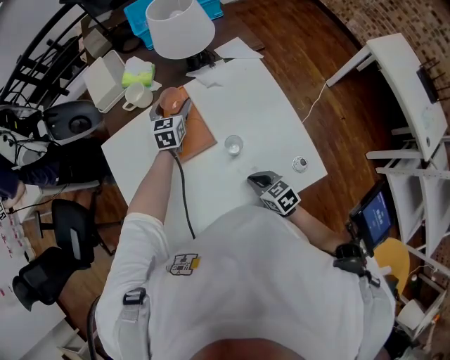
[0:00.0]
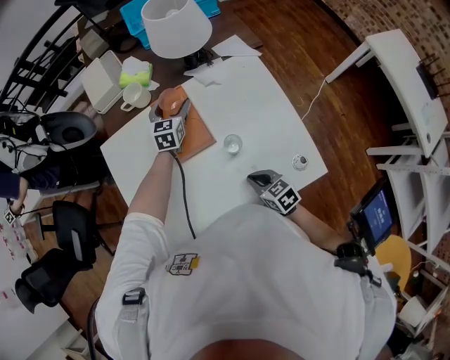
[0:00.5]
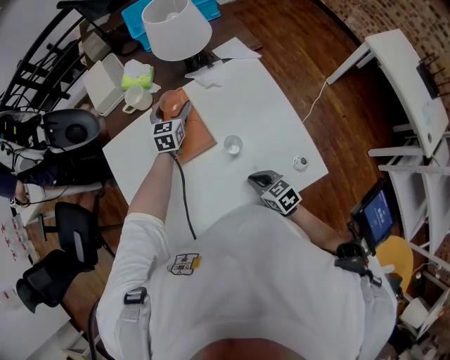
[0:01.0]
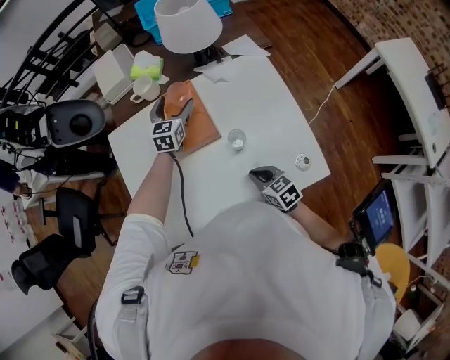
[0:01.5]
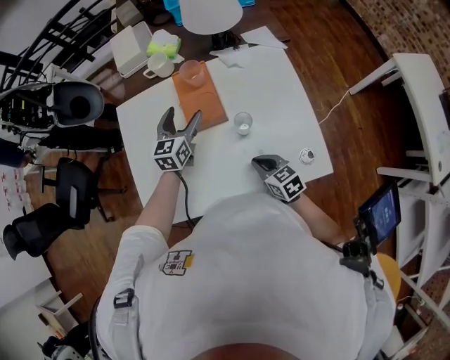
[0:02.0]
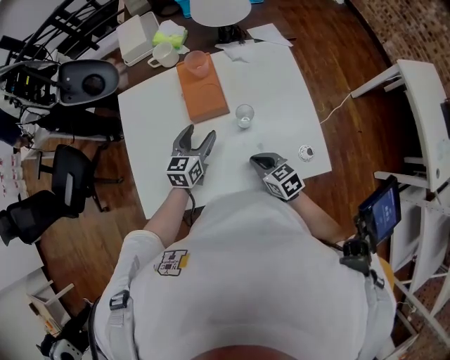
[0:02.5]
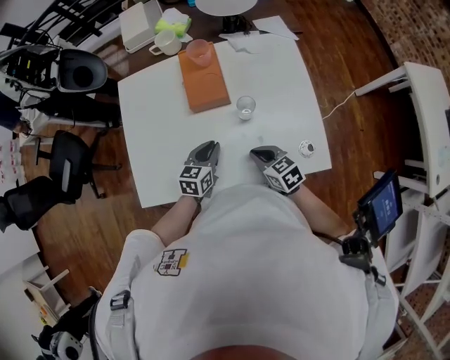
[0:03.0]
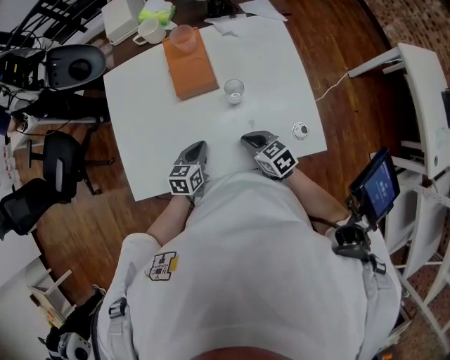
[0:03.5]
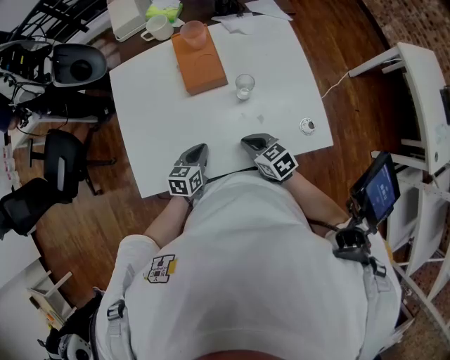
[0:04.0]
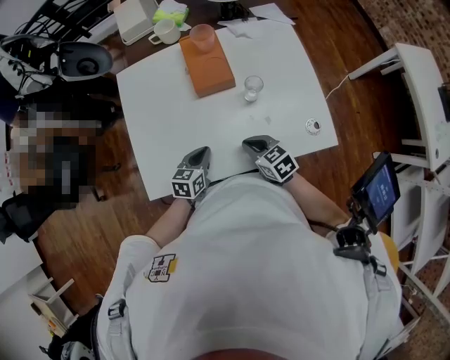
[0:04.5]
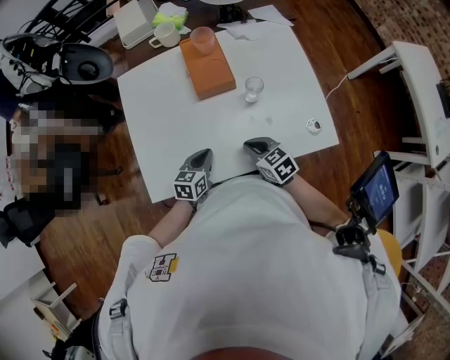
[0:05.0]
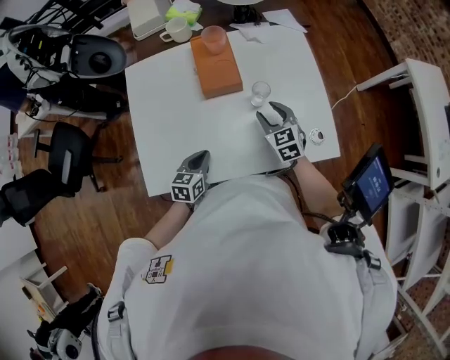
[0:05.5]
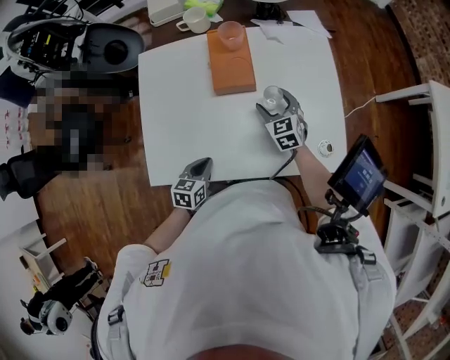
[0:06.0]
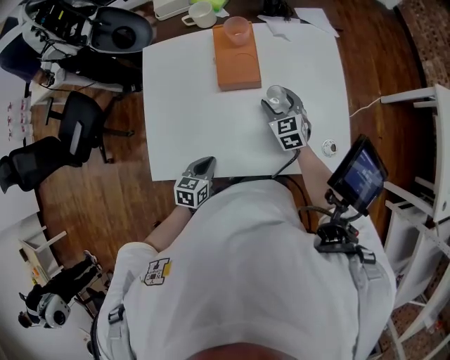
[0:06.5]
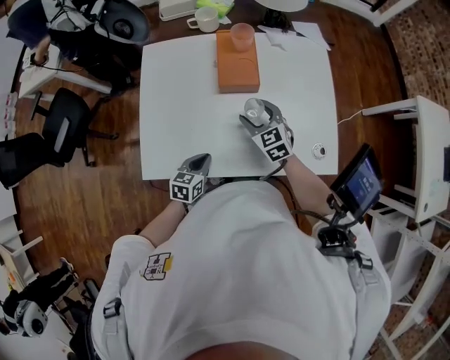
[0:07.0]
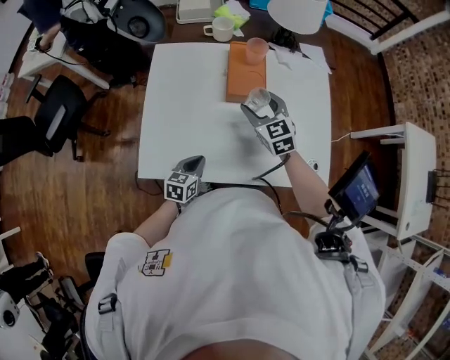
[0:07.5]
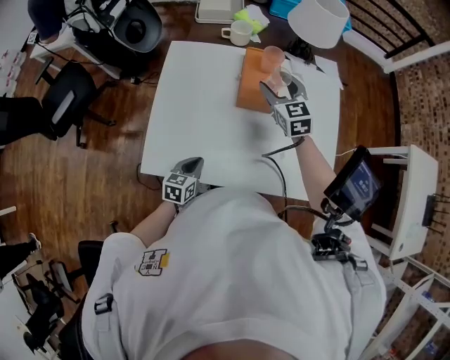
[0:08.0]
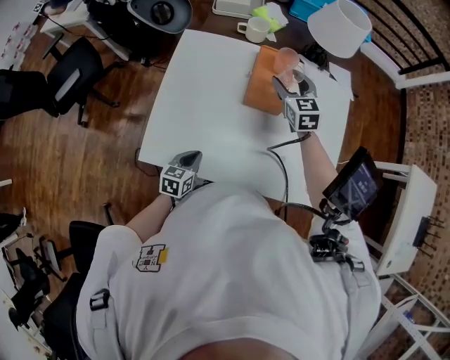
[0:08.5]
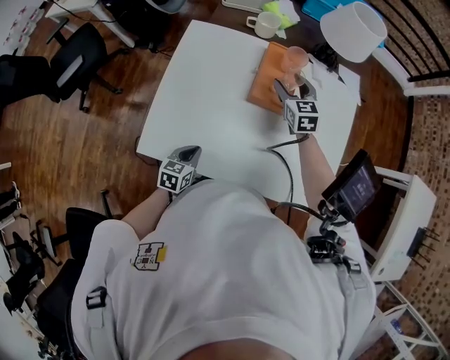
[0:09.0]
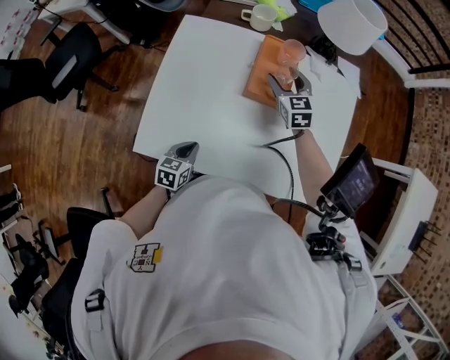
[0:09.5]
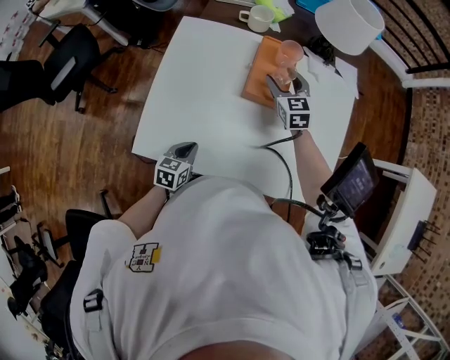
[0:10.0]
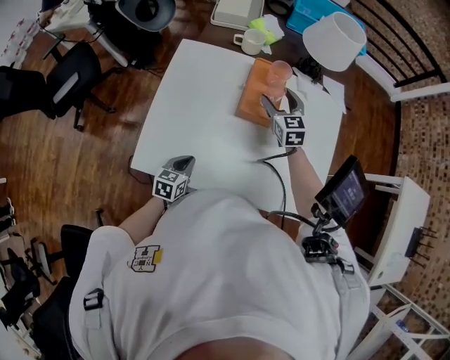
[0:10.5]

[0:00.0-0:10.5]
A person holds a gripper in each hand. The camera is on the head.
0:00.0 to 0:02.0: The left gripper is displaced backward and to the left by some 15 cm.
0:02.0 to 0:04.0: The right gripper travels to the left by approximately 5 cm. The left gripper moves backward and downward, some 25 cm, rotates about 30 degrees, and closes up.
0:04.0 to 0:06.5: The right gripper moves forward, some 20 cm, changes its angle by roughly 30 degrees, and opens up; the left gripper moves backward, approximately 5 cm.
0:06.5 to 0:08.5: The left gripper moves to the left, some 5 cm. Meanwhile the right gripper goes some 20 cm upward, forward and to the left.

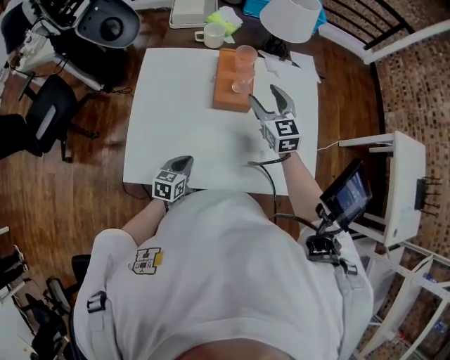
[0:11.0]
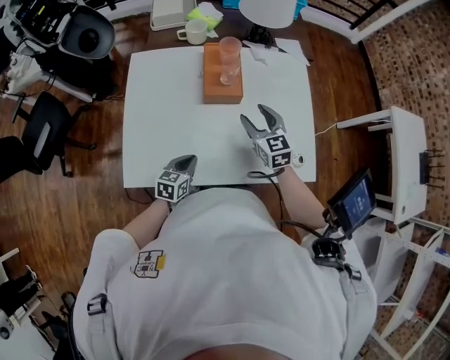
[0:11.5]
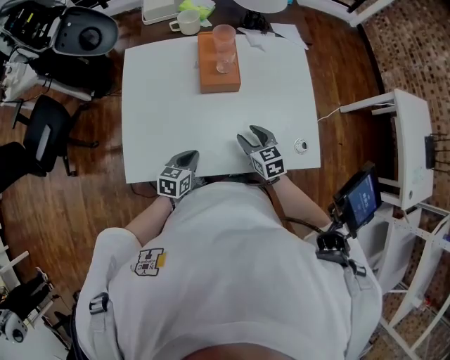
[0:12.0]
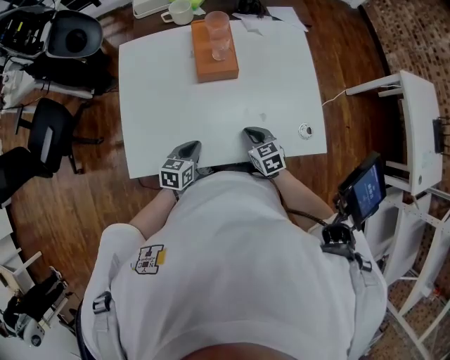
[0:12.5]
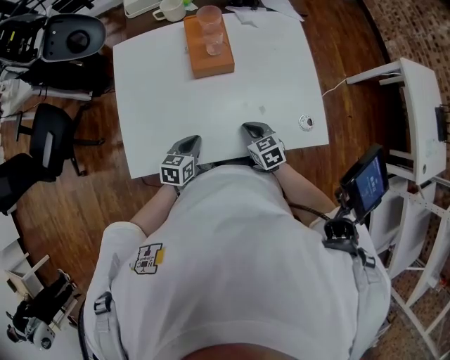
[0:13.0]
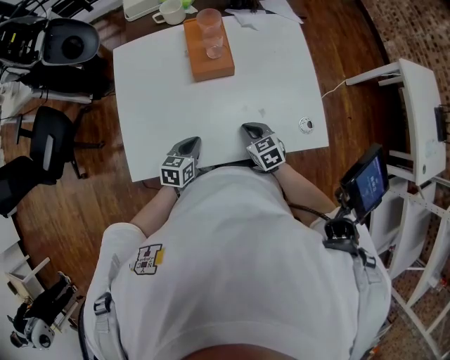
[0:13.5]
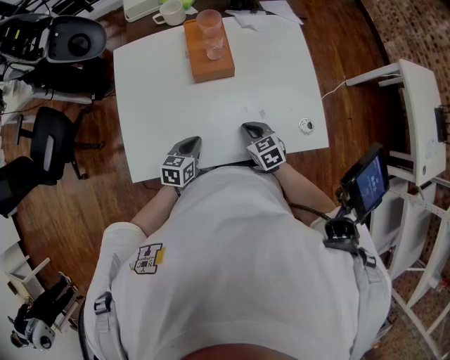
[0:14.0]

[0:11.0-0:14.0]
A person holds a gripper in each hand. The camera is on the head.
0:11.0 to 0:12.5: The right gripper shifts approximately 30 cm backward and downward, turns by some 30 degrees, and closes up.
0:12.5 to 0:14.0: Neither gripper changes place.

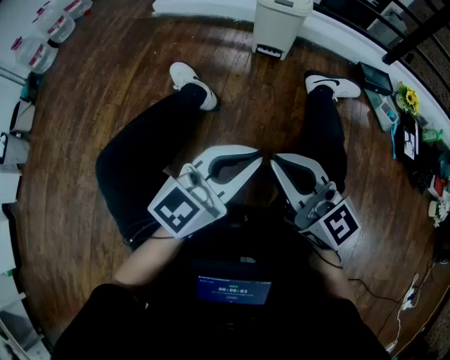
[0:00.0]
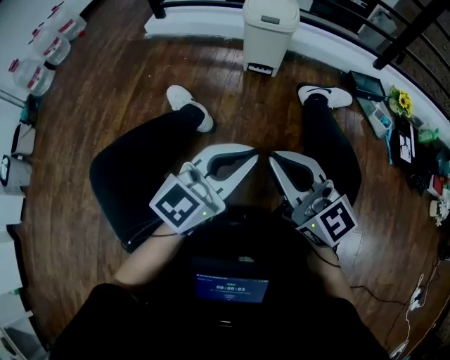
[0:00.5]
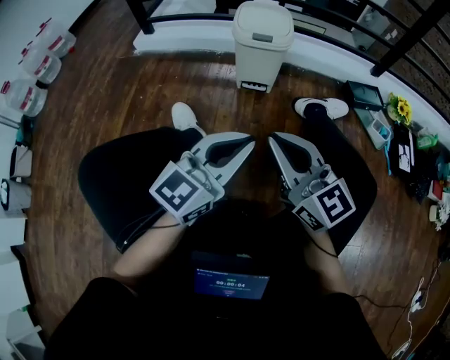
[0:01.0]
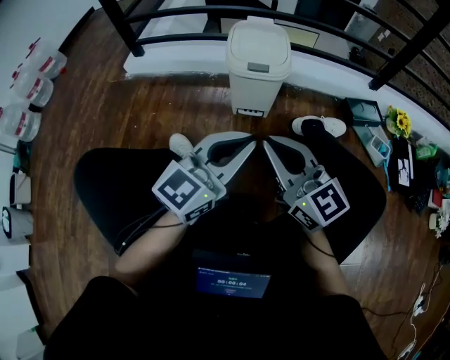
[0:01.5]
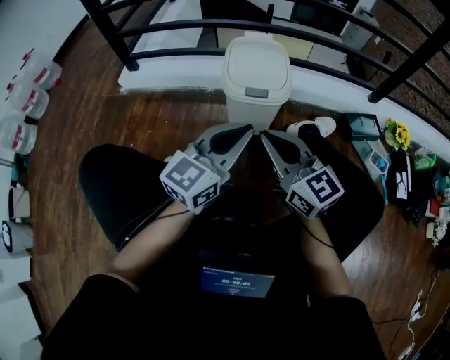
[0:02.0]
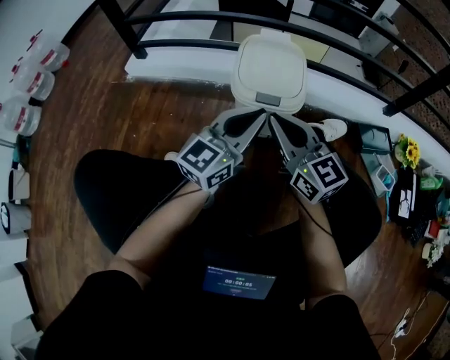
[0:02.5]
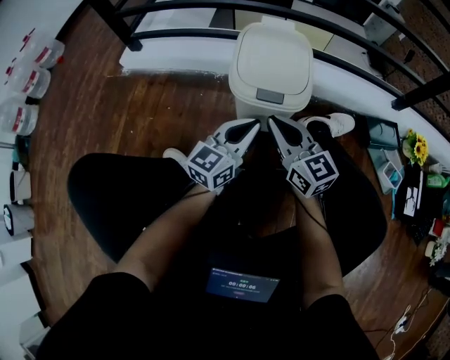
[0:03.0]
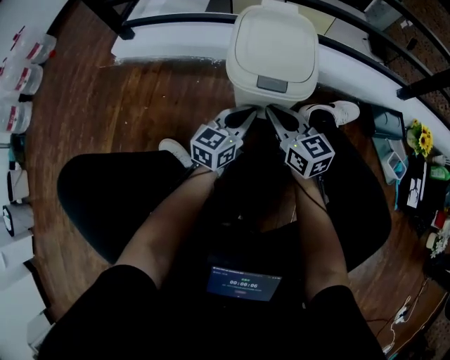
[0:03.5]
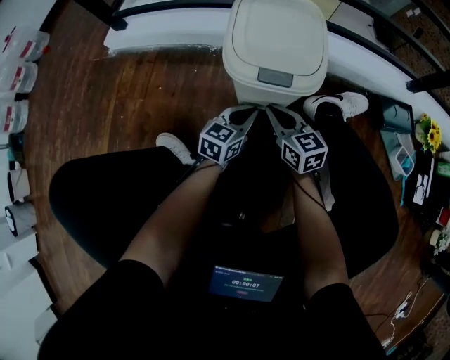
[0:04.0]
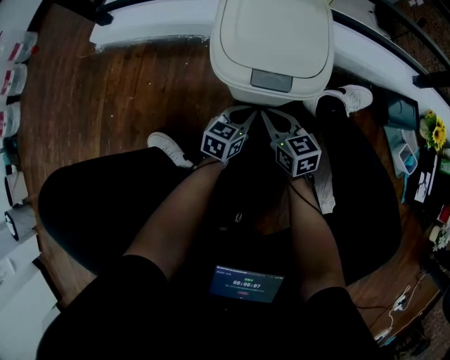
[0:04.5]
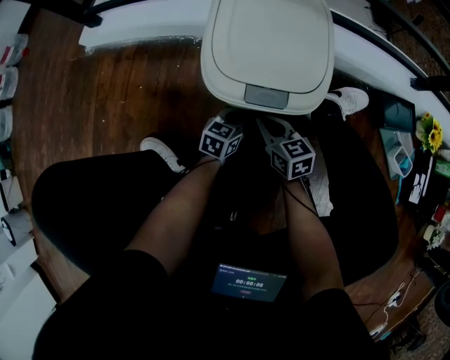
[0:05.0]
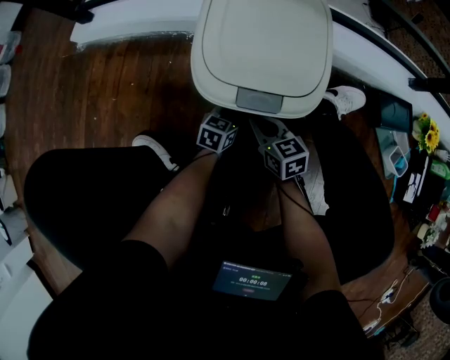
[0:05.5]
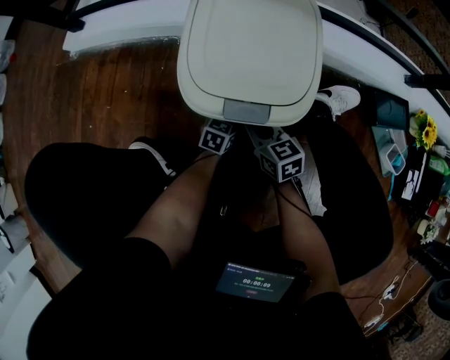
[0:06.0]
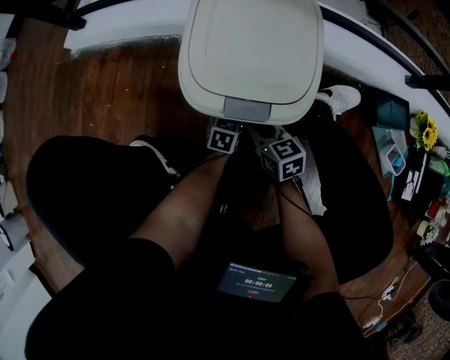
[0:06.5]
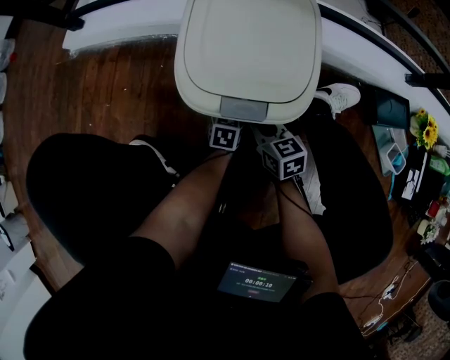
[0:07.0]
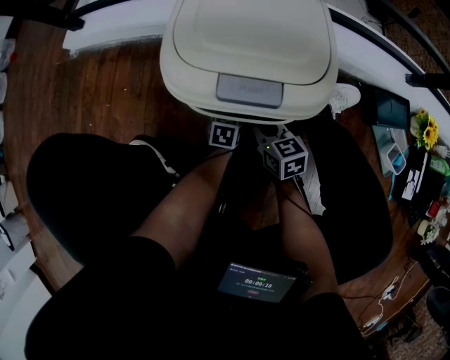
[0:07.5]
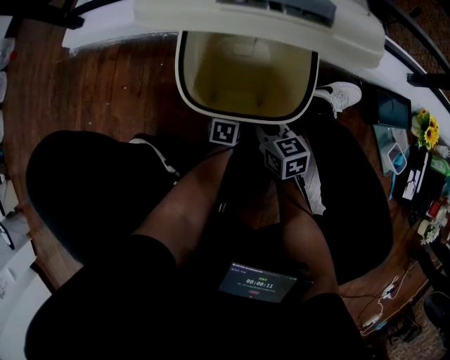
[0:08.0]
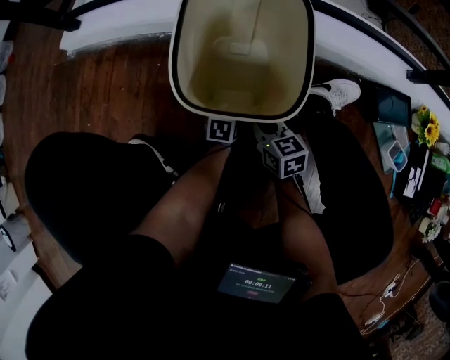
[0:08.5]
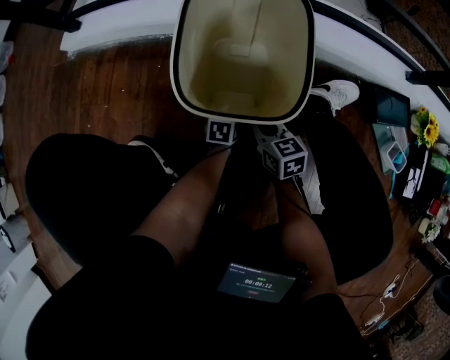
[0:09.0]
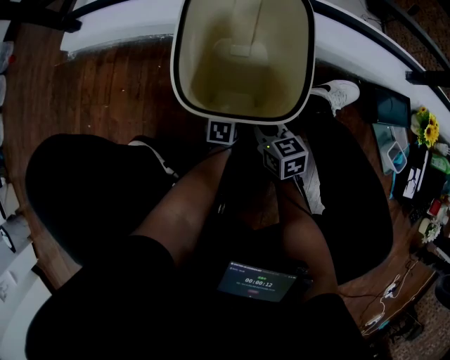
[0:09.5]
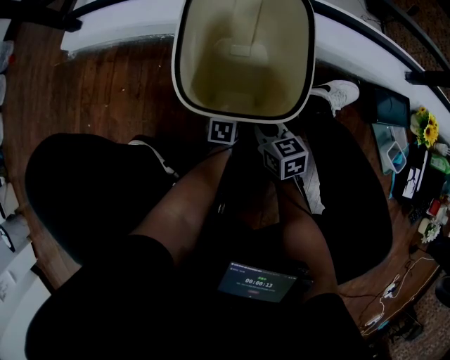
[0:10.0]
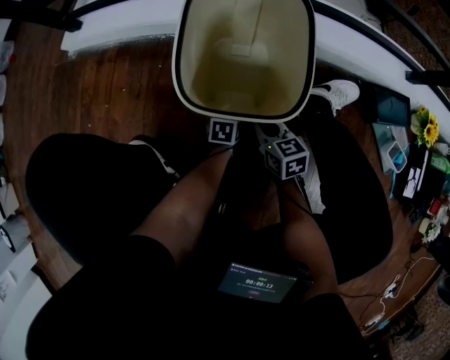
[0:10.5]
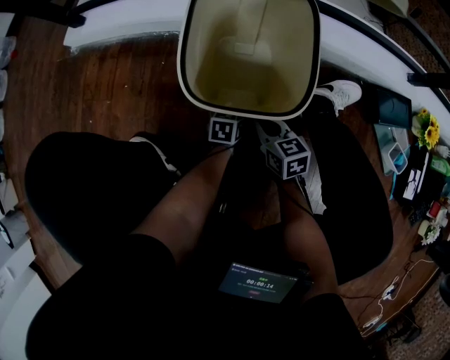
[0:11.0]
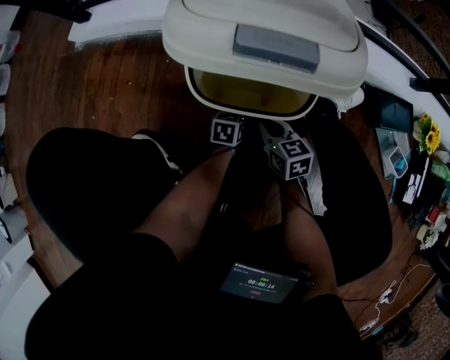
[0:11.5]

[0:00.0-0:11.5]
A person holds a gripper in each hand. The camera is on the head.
0:00.0 to 0:02.0: The two grippers travel together, forward, about 50 cm.
0:02.0 to 0:04.0: The grippers both shift downward and forward by approximately 35 cm. The right gripper swivels roughly 20 degrees; the left gripper rotates roughly 30 degrees.
0:04.0 to 0:06.0: The left gripper shifts roughly 20 cm downward and forward, while the right gripper shifts some 10 cm downward.
0:06.0 to 0:09.5: There are only small adjustments of the grippers.
0:09.5 to 0:11.5: Both grippers stay put.

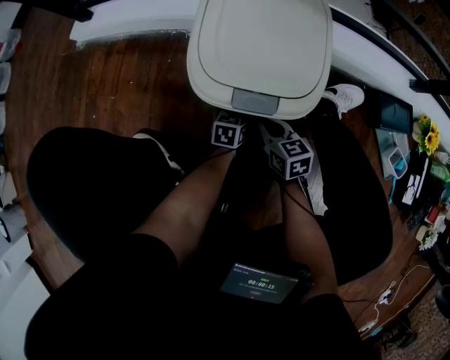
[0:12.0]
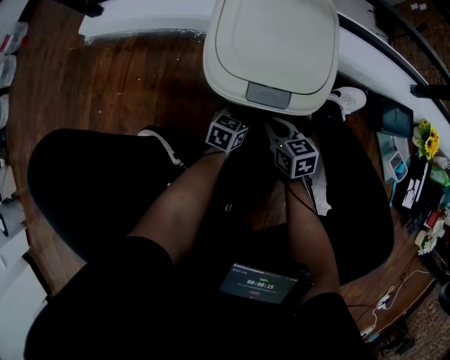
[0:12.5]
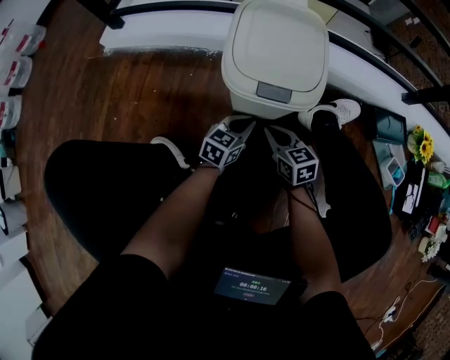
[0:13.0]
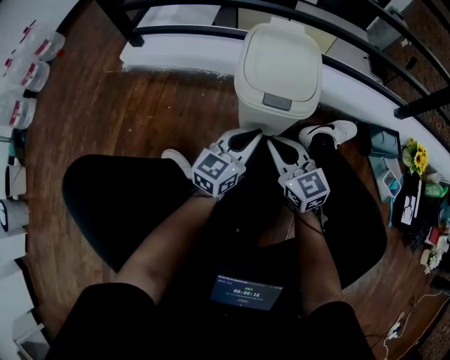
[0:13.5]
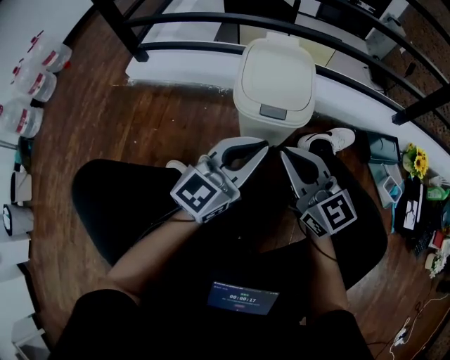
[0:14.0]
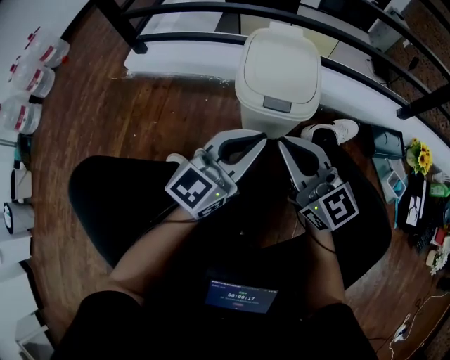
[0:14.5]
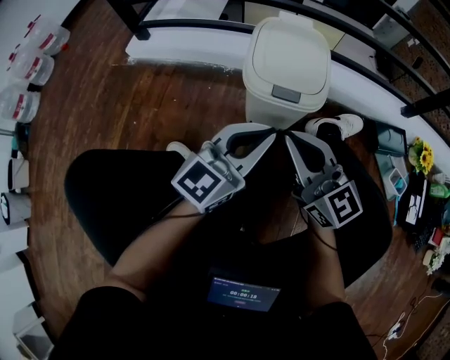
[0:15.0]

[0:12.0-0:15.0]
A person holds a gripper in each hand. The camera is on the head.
0:12.0 to 0:13.5: Both grippers move upward, about 30 cm. The left gripper angles its fingers upward, by roughly 40 degrees. The right gripper swivels roughly 30 degrees.
0:13.5 to 0:15.0: Both grippers travel together upward, some 15 cm.
